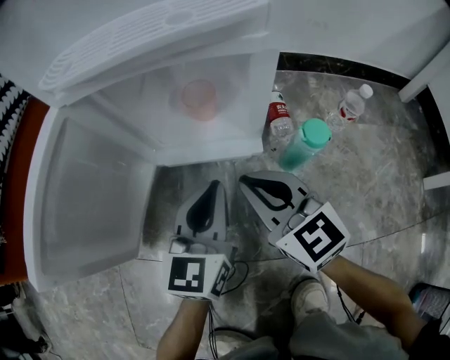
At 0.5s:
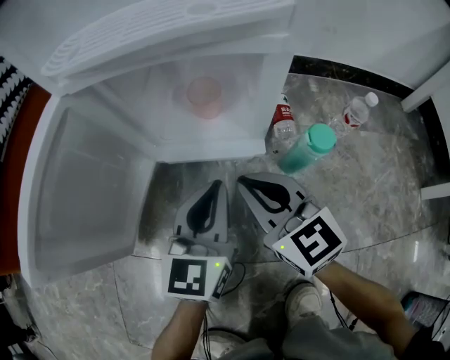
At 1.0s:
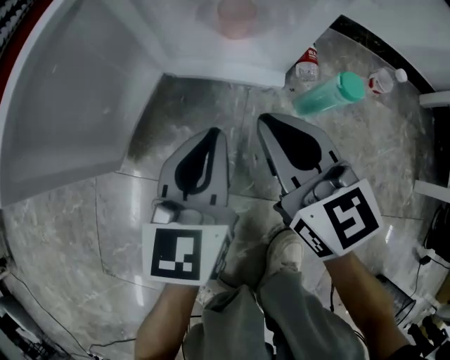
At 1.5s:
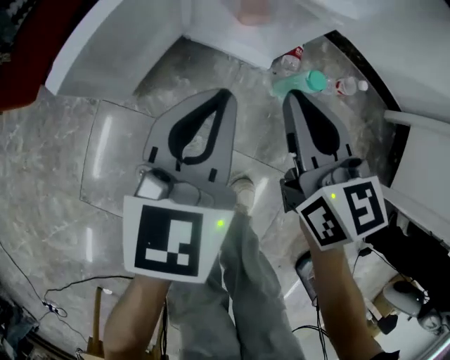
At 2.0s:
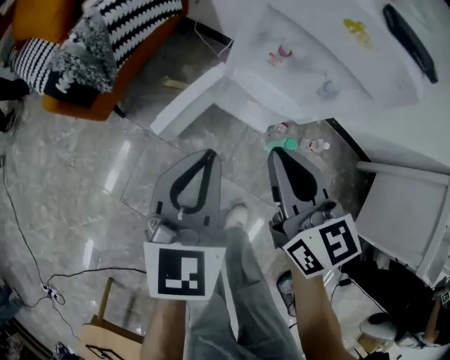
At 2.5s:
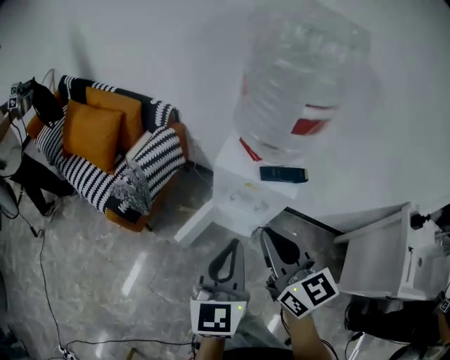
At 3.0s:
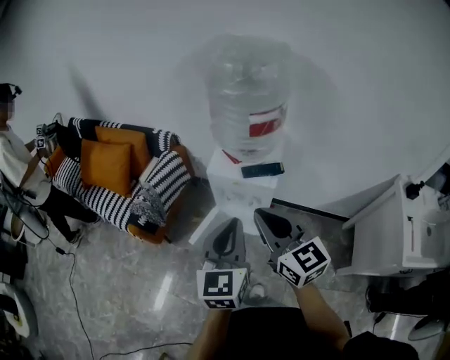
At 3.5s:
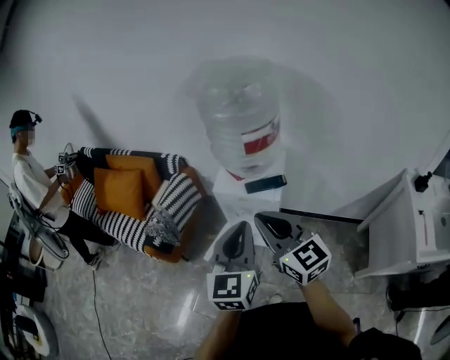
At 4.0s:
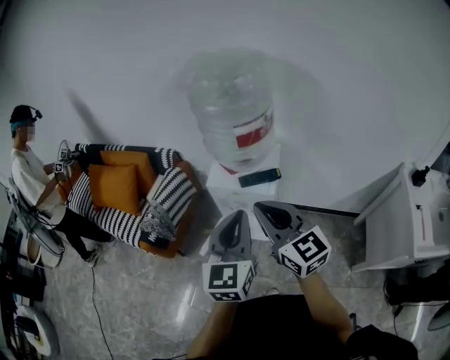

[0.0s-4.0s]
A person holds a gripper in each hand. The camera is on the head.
0.0s to 2.0s: The two grippers go about 50 cm upward. The left gripper turns by about 20 degrees.
2.0s to 4.0s: Both grippers travel together upward, approximately 40 cm. The right gripper rotates approximately 20 degrees.

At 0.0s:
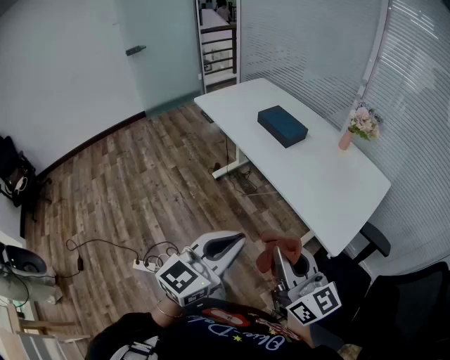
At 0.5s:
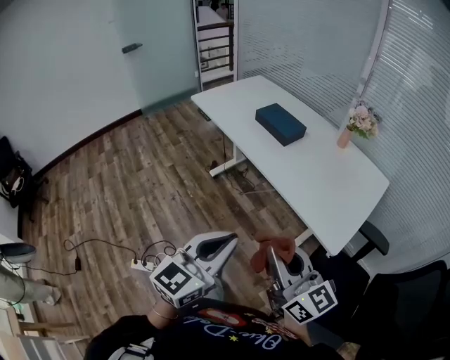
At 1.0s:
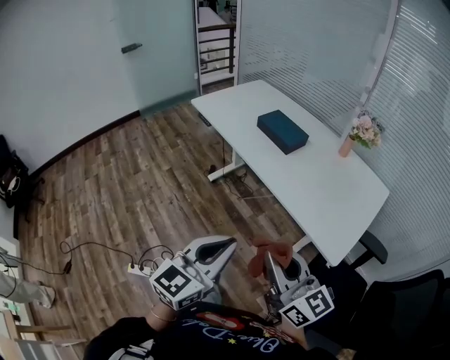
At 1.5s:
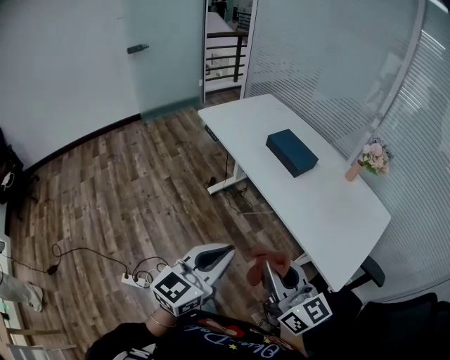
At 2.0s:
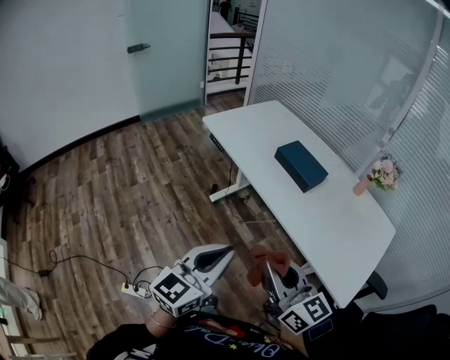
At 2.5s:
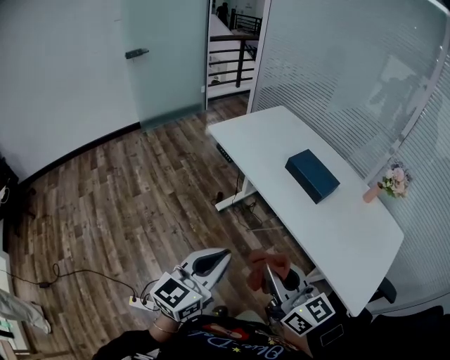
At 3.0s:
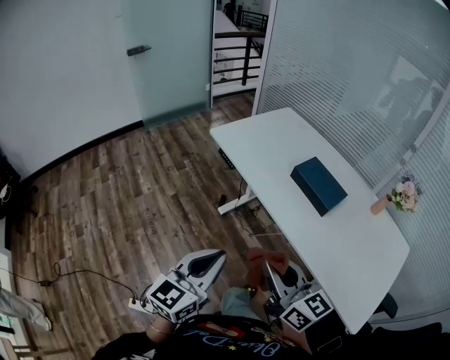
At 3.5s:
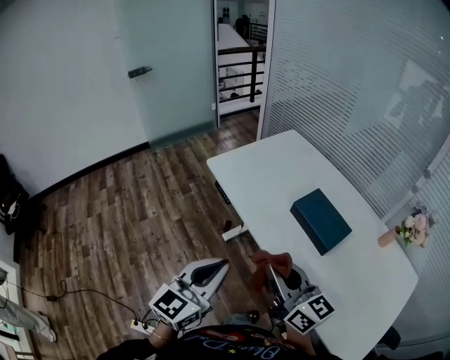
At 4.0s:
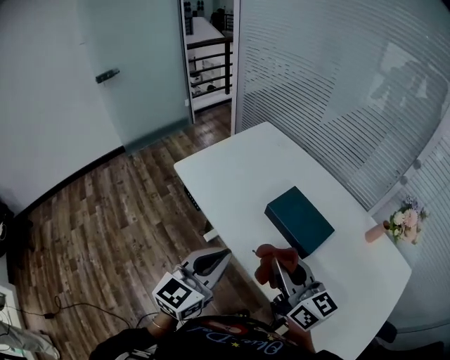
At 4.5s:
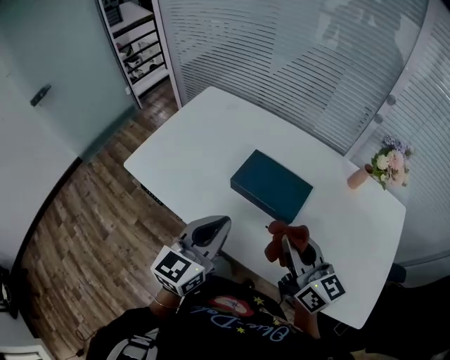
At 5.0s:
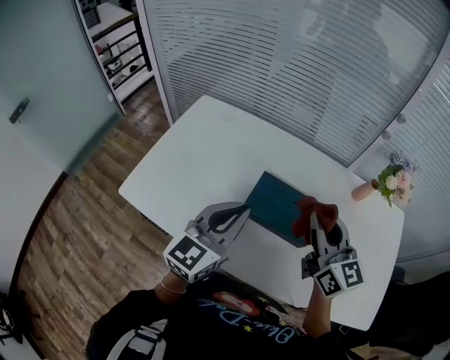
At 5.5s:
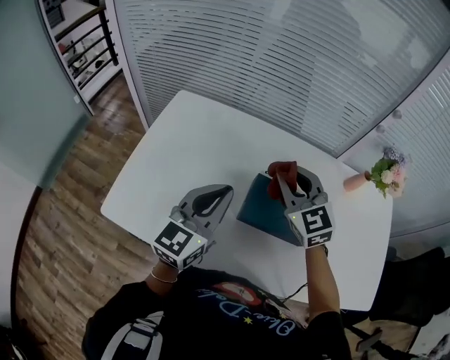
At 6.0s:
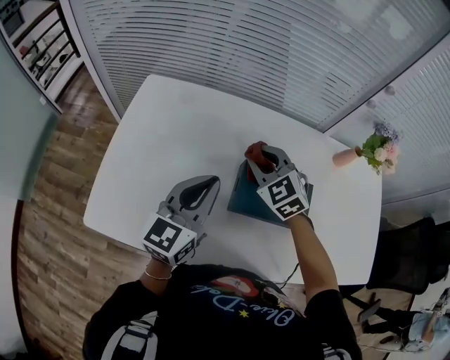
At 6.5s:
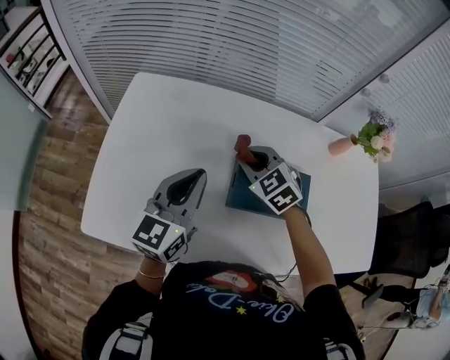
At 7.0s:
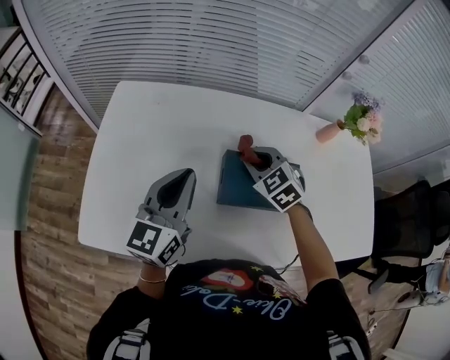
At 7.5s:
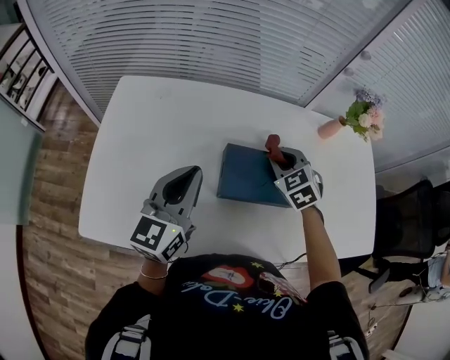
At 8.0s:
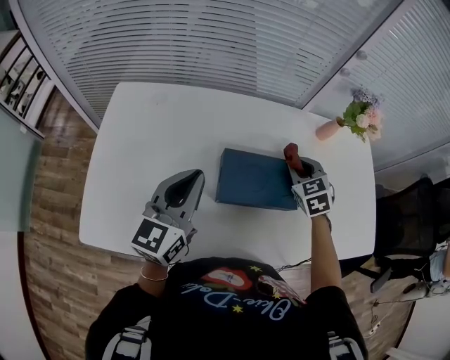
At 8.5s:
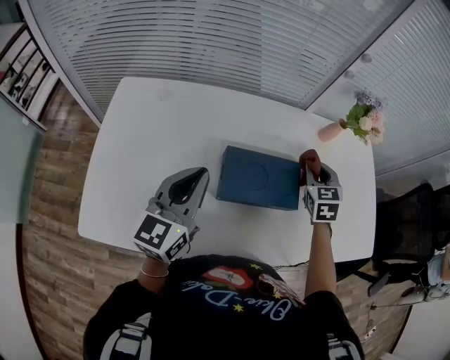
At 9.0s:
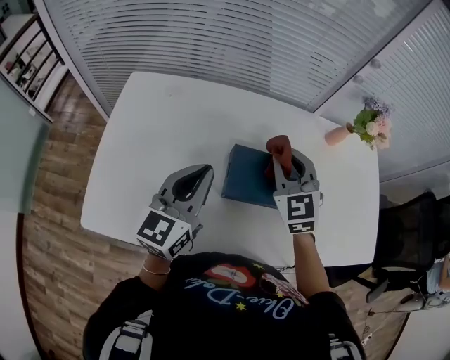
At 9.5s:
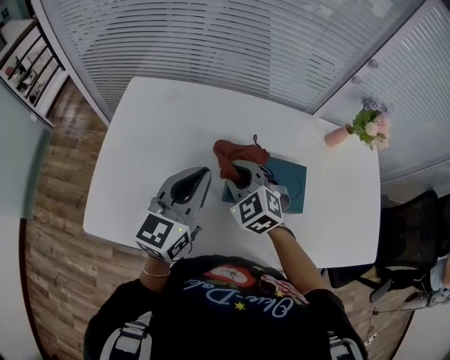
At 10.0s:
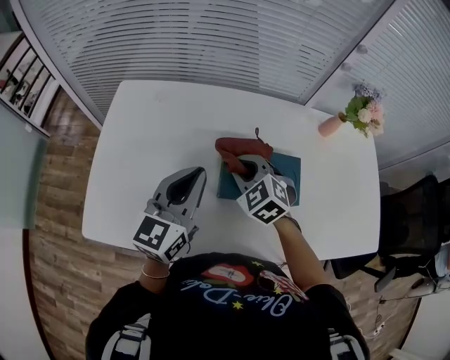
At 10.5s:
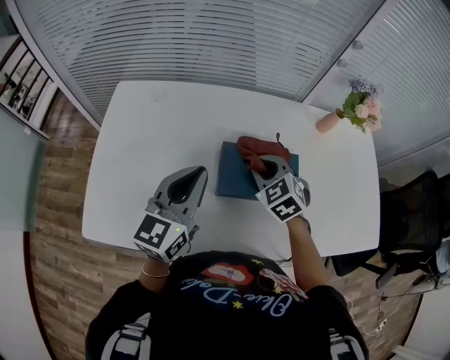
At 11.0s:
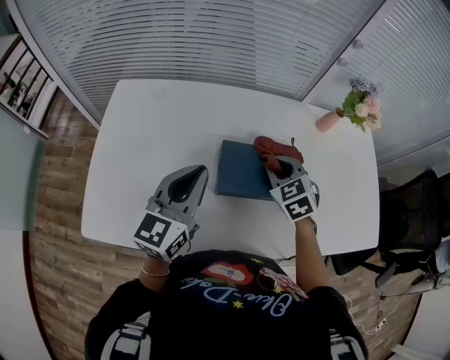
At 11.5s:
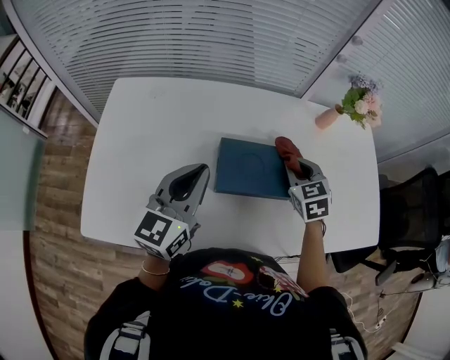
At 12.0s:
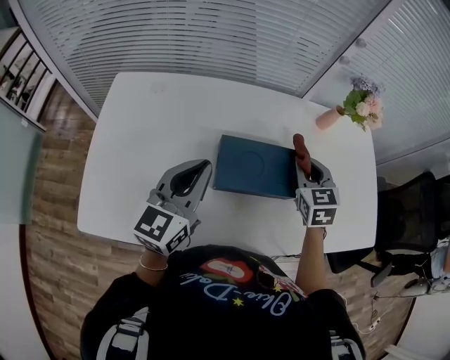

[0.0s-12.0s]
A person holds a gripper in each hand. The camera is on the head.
0.0s to 2.0s: Both grippers travel together forward and to the left, some 25 cm.
2.0s to 4.0s: The two grippers go some 35 cm forward.
4.0s to 6.0s: The left gripper shifts by about 35 cm, and swivels about 30 degrees. Meanwhile the right gripper ends up about 40 cm from where it was, and tilts its fingers approximately 40 degrees downward.
6.0s to 8.0s: The right gripper shifts roughly 20 cm to the right, and changes its angle by roughly 30 degrees.
8.0s to 10.0s: The right gripper swings left and right, some 30 cm each way, with 2 reversals, and rotates about 30 degrees.
10.0s to 12.0s: The right gripper is displaced to the right by some 20 cm, and swivels about 40 degrees.

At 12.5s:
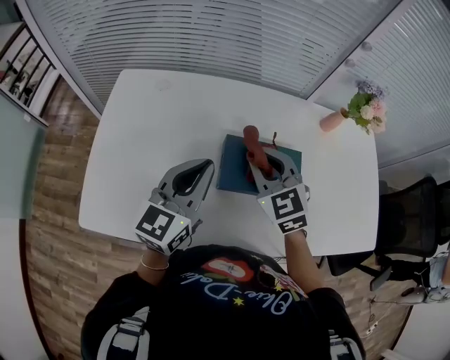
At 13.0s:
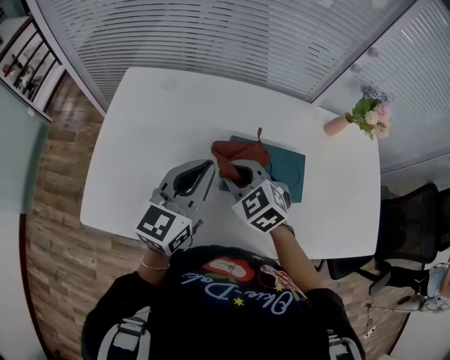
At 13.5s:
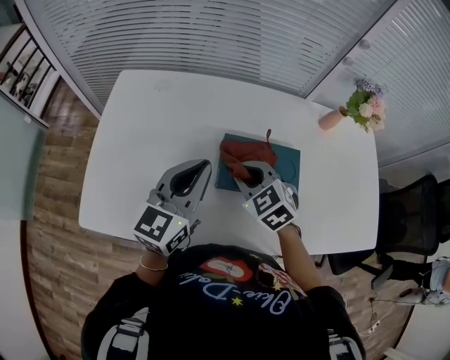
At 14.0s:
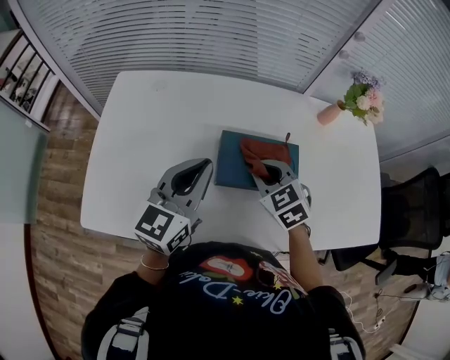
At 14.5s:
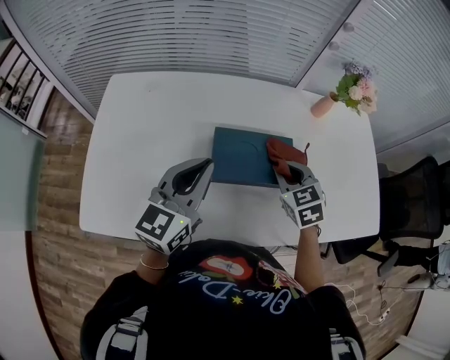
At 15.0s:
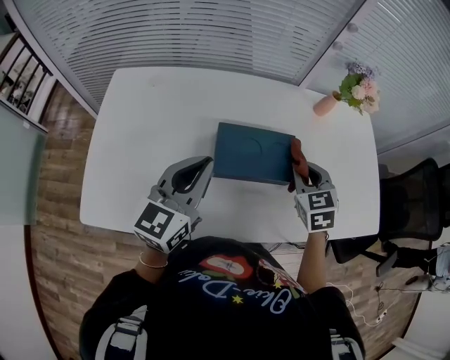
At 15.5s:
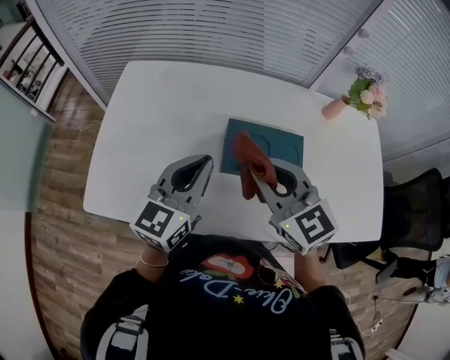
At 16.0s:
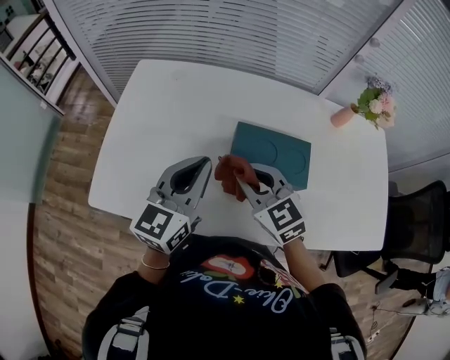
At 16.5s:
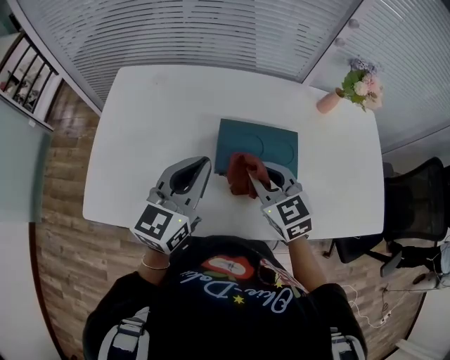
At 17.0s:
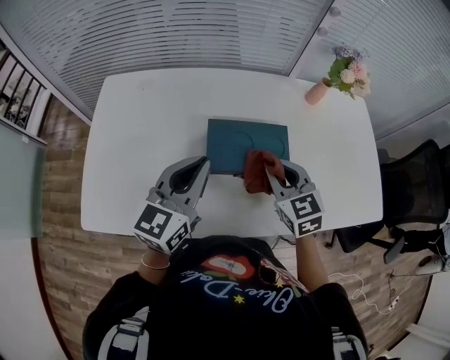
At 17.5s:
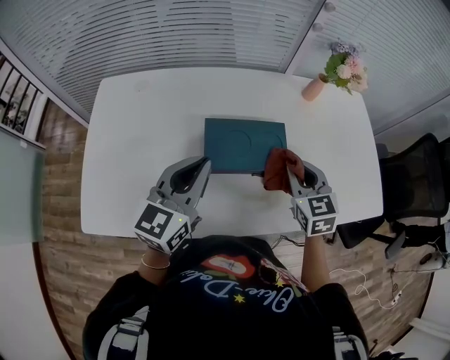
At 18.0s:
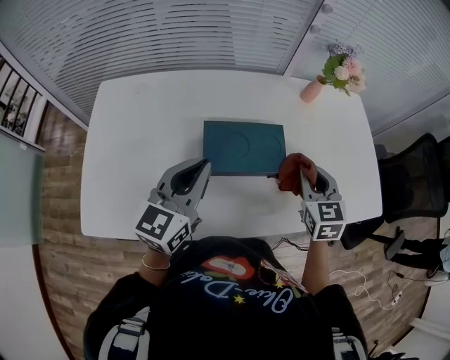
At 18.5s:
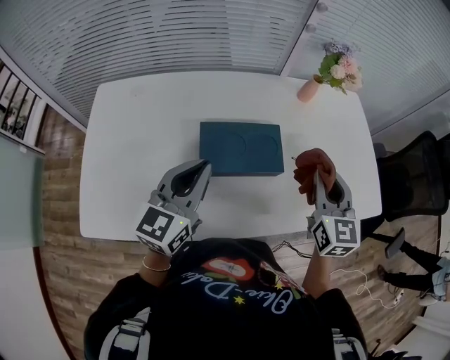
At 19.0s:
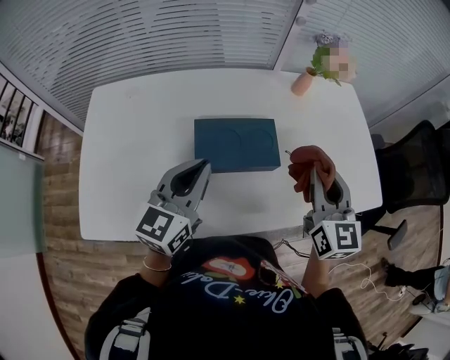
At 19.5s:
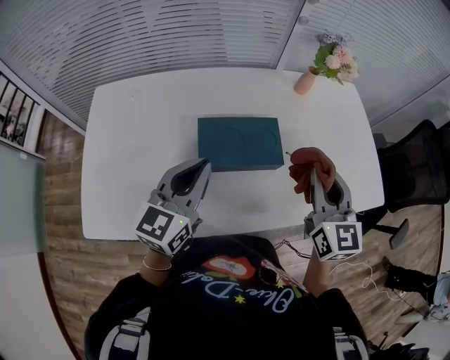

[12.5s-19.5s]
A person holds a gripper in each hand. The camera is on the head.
12.5s to 14.5s: The right gripper moves to the right and downward, roughly 15 cm, and changes its angle by approximately 20 degrees.
14.5s to 16.0s: The right gripper heads to the left, covering approximately 15 cm, and changes its angle by some 30 degrees.
16.0s to 17.5s: The left gripper shifts some 5 cm to the right, while the right gripper travels to the right by approximately 20 cm, and rotates roughly 40 degrees.
17.5s to 19.5s: The right gripper shifts roughly 10 cm upward and to the right, and swivels roughly 30 degrees.

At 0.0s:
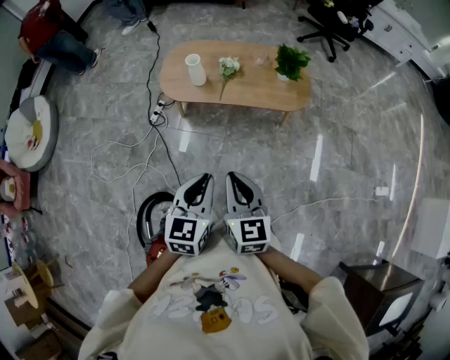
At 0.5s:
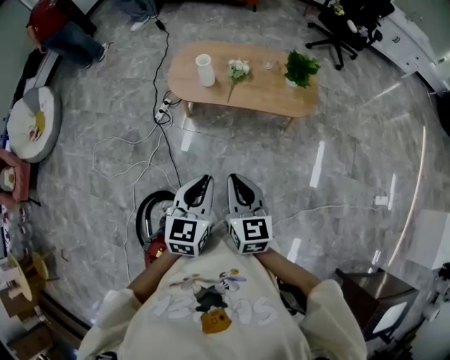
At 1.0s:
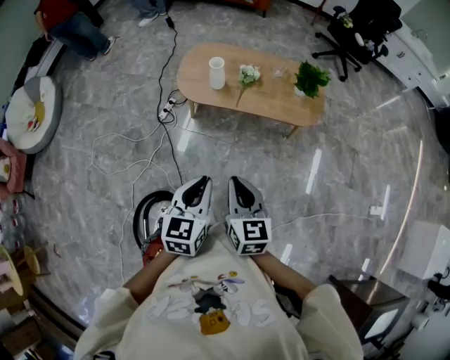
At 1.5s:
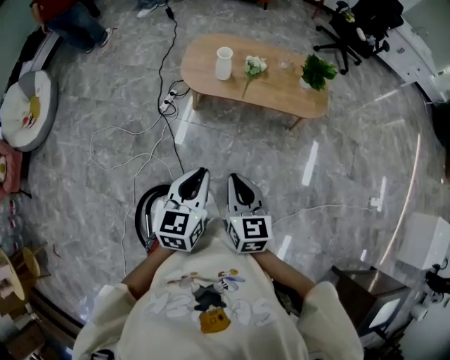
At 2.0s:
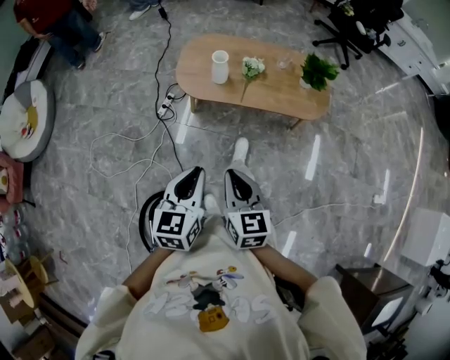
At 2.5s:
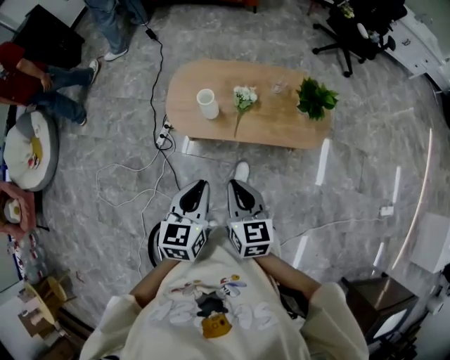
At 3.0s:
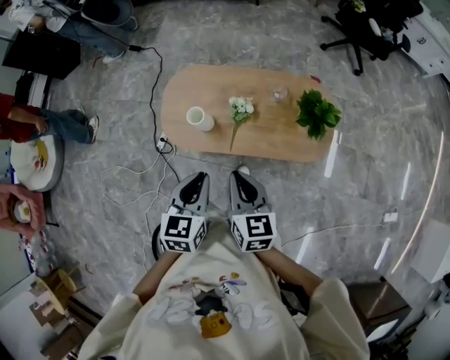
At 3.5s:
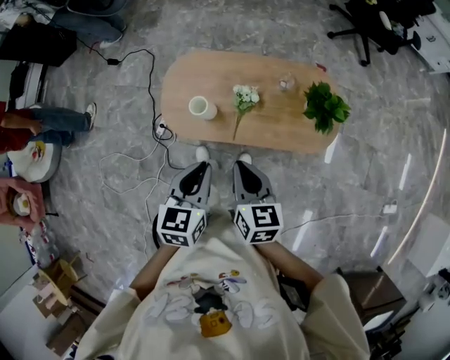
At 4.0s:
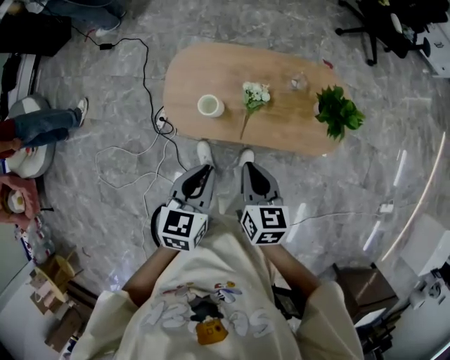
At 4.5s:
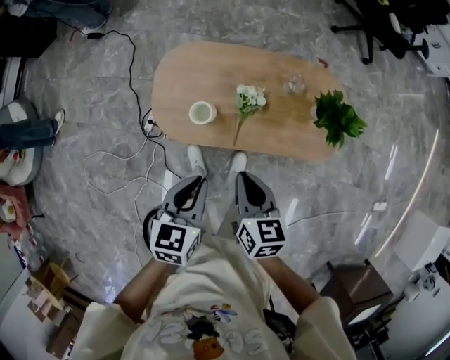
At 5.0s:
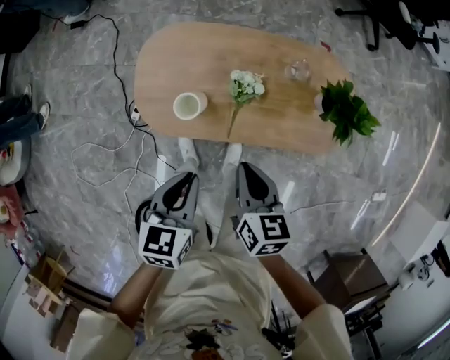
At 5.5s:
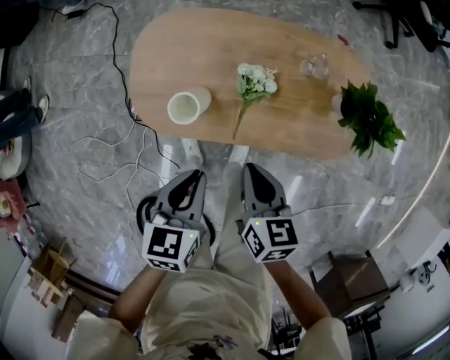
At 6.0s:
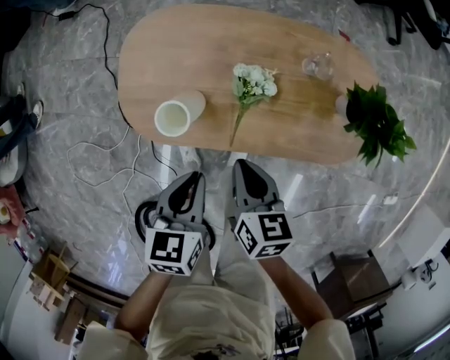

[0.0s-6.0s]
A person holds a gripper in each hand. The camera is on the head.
0.0s to 2.0s: The grippers both shift to the left and forward by about 15 cm.
2.0s to 4.0s: Both grippers move forward, some 40 cm.
4.0s to 6.0s: Both grippers travel together downward, roughly 25 cm.
